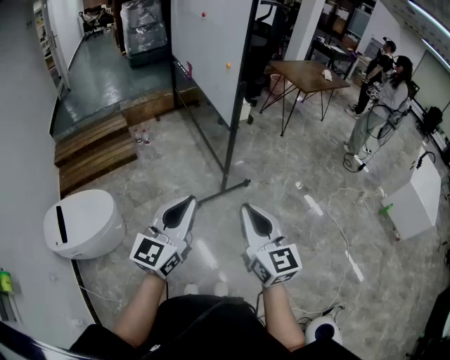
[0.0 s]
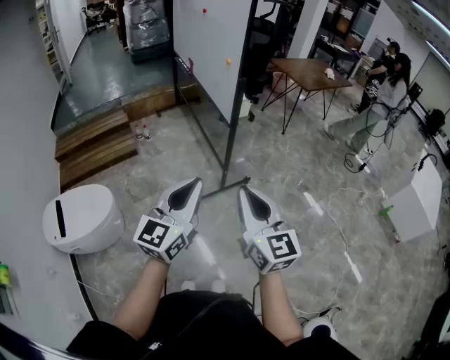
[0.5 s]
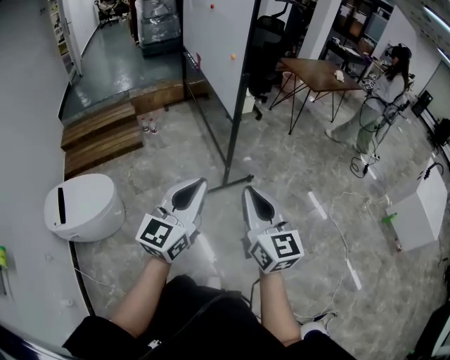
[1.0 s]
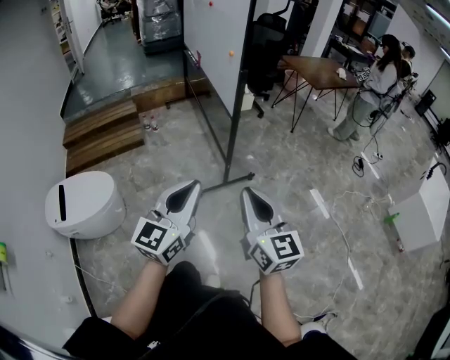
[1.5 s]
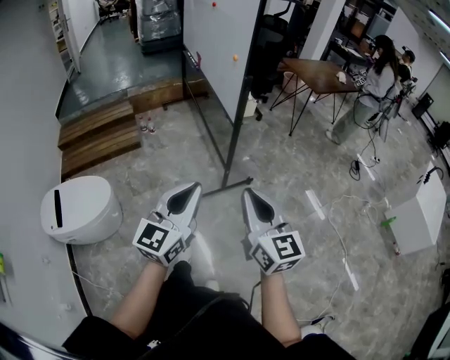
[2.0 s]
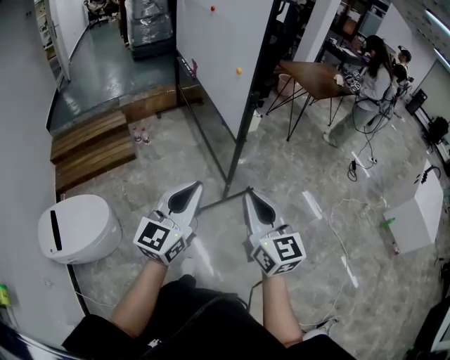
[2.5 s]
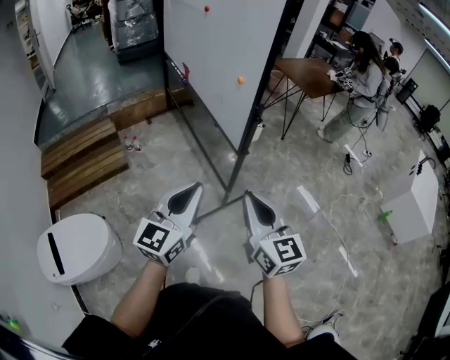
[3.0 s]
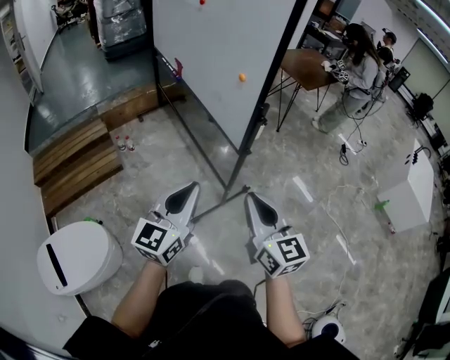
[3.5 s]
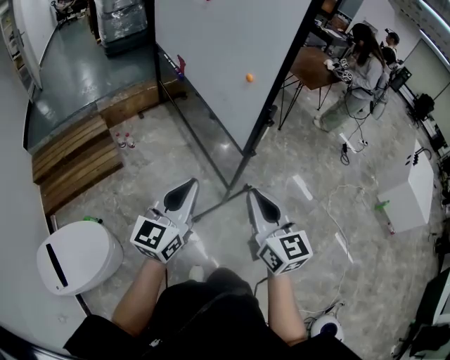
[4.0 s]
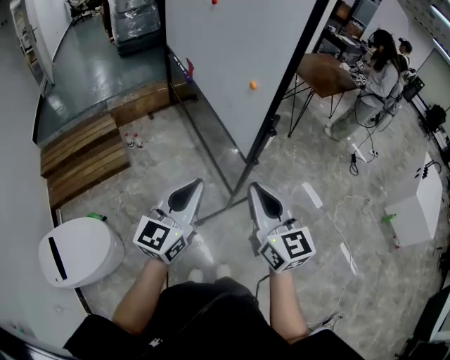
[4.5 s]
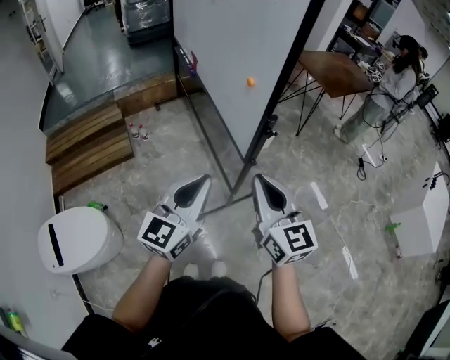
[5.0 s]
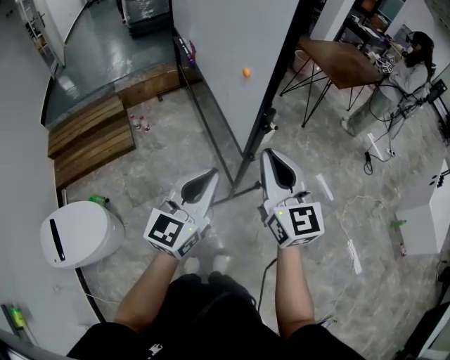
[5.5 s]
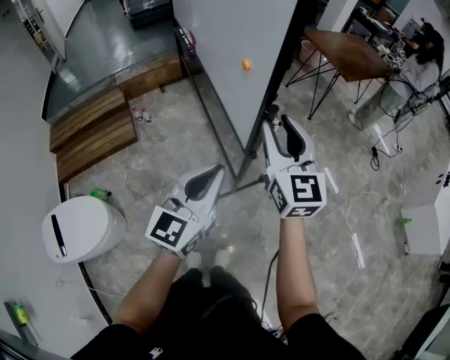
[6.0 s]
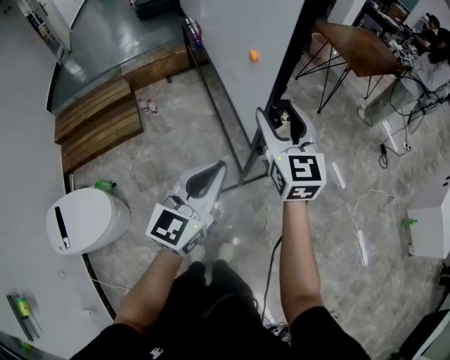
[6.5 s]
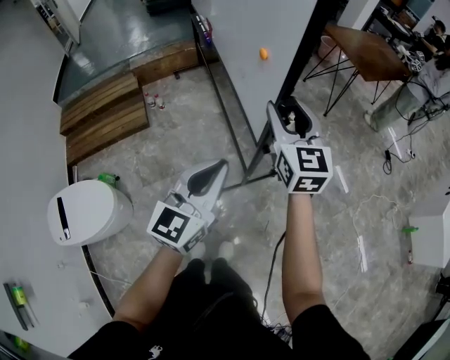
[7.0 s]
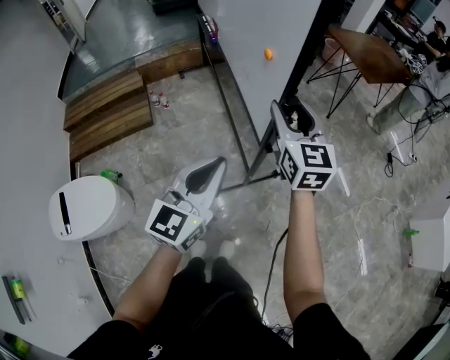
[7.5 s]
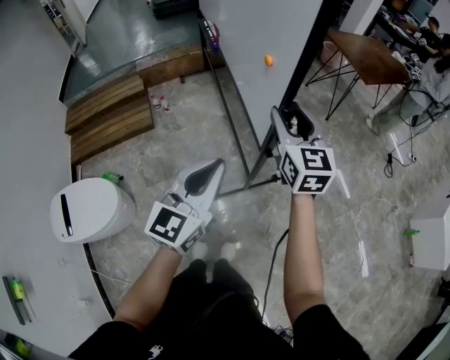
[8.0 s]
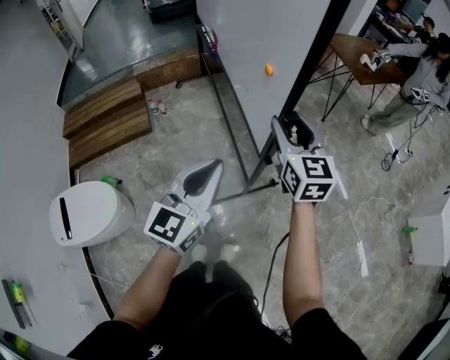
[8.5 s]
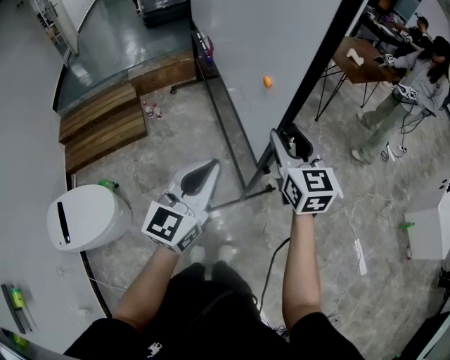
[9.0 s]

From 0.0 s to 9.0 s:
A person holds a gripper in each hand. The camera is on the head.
From 0.0 s to 2.0 s: The grippers both shift forward by roughly 5 cm.
From 2.0 s to 4.5 s: Both grippers travel together forward and to the left, about 30 cm.
From 4.5 s to 7.0 s: The right gripper travels forward by approximately 25 cm, and opens its fingers; the left gripper shifts approximately 10 cm to the right and forward.
From 7.0 s to 9.0 s: The right gripper travels backward by about 10 cm, while the left gripper ends up roughly 5 cm from where it was.

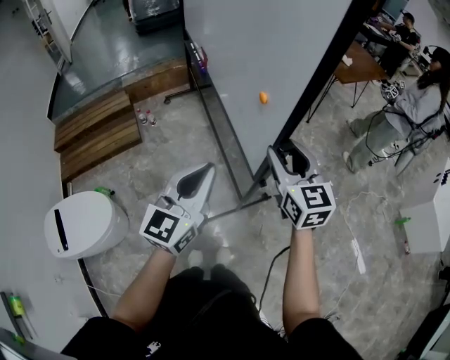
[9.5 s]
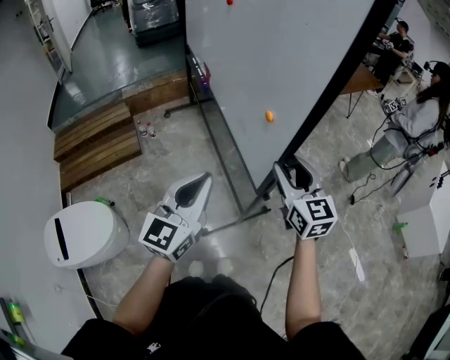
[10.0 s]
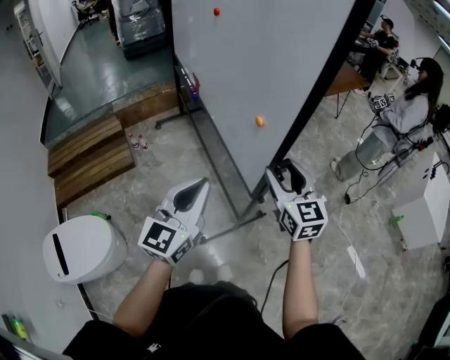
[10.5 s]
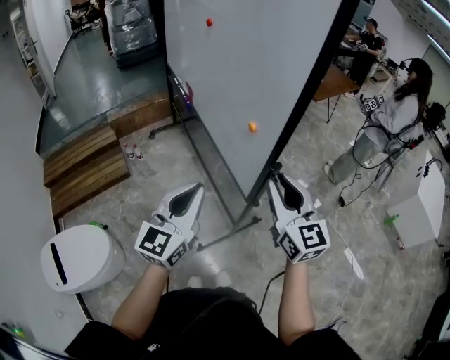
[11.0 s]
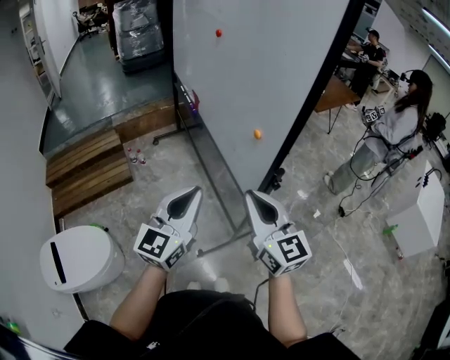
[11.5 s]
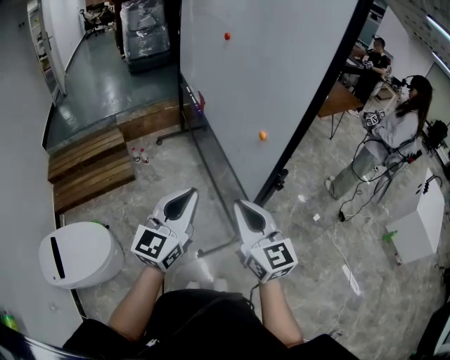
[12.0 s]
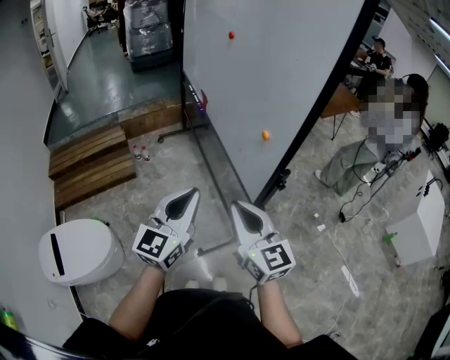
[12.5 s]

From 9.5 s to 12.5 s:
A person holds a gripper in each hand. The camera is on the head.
From 9.5 s to 11.0 s: The right gripper heads backward and upward, covering about 10 cm.
From 11.0 s to 12.5 s: The right gripper is displaced to the left and backward by approximately 15 cm, and closes its fingers; the left gripper shifts by some 5 cm.

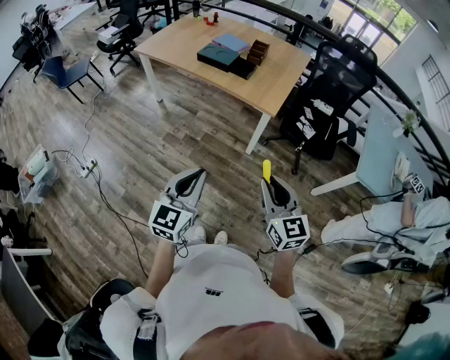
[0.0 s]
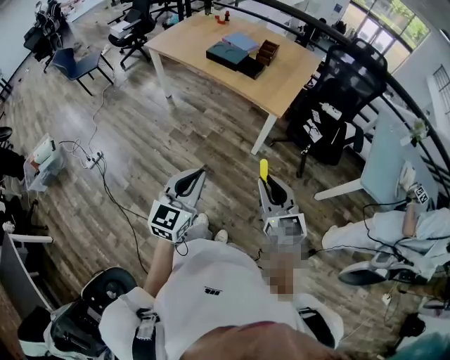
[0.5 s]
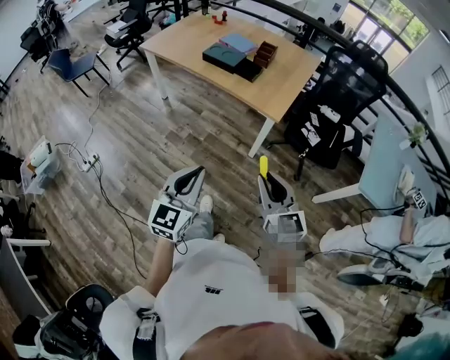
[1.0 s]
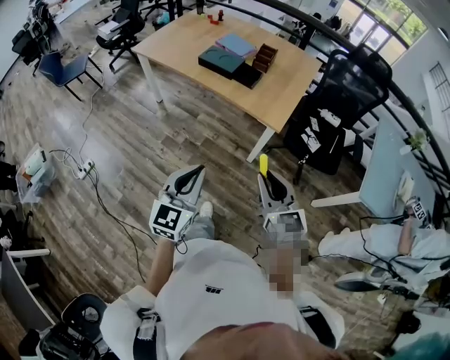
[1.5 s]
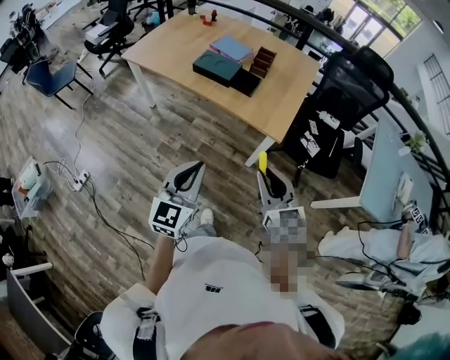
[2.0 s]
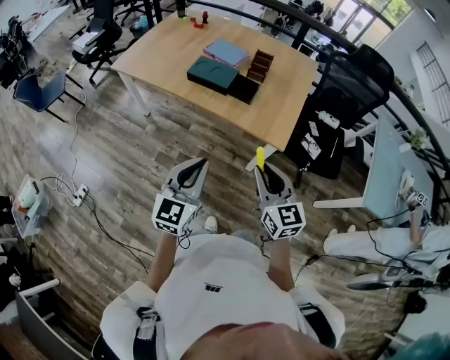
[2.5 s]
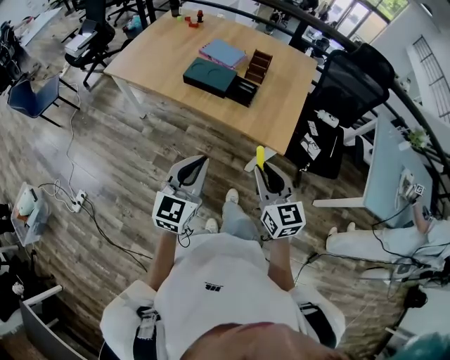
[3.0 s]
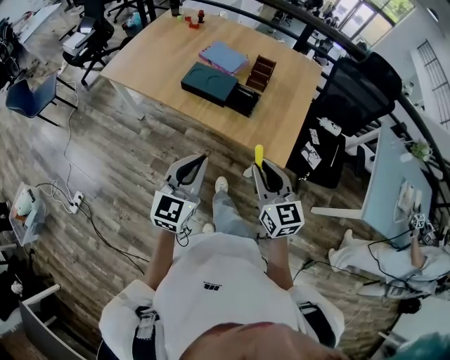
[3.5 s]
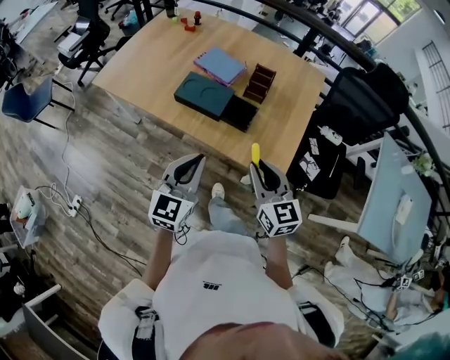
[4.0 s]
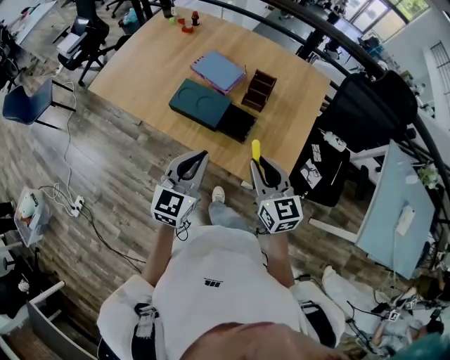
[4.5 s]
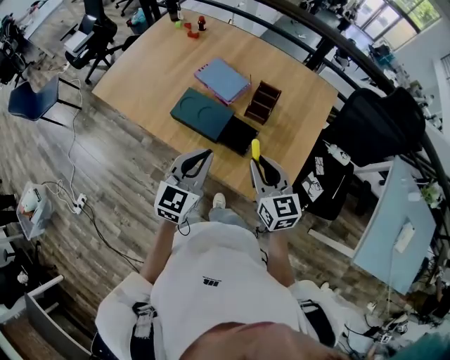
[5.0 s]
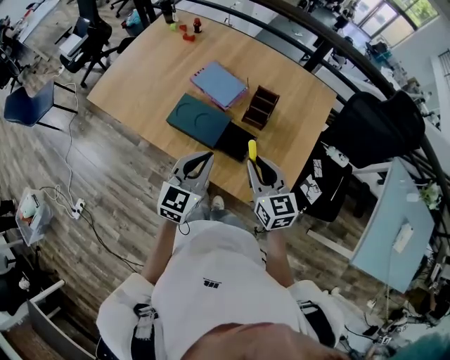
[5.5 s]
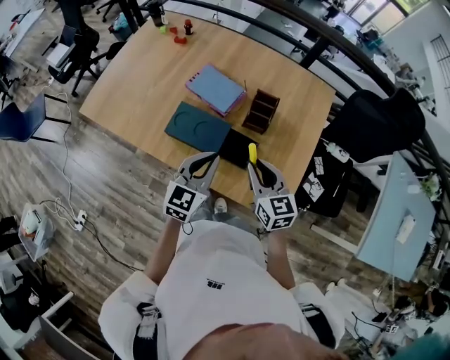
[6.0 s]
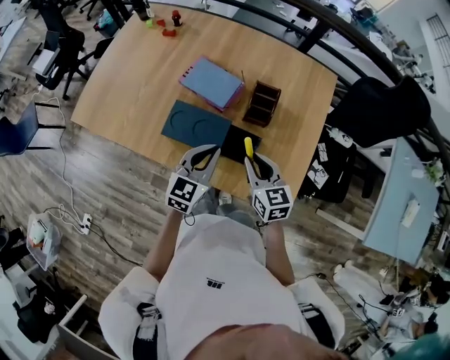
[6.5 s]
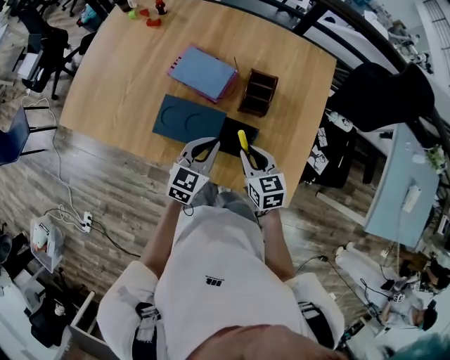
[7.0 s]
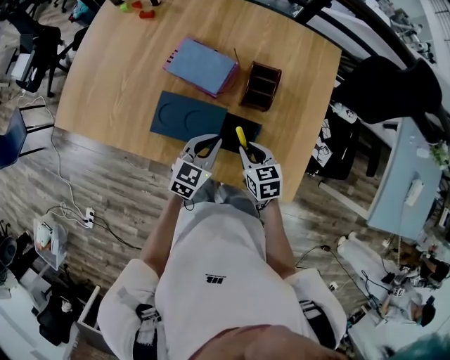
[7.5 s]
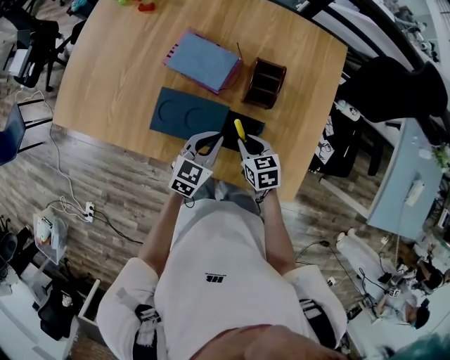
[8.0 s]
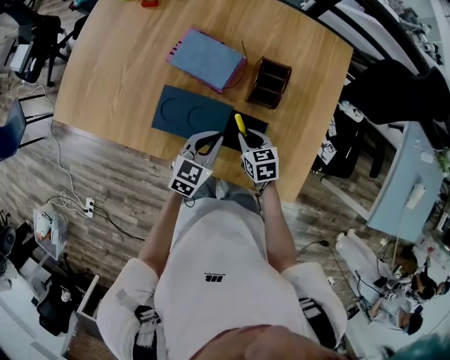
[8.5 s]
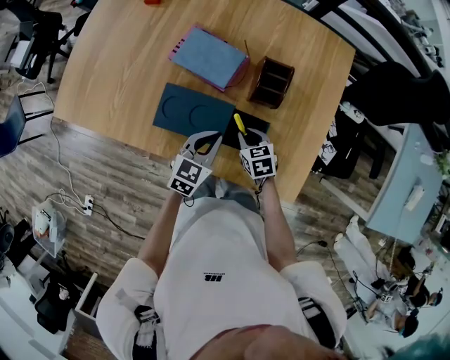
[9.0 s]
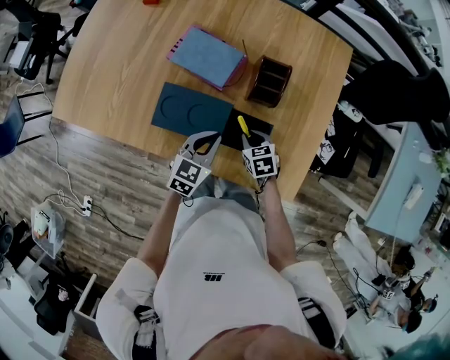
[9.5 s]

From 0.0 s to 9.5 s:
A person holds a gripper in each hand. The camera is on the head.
From 0.0 s to 2.0 s: Both grippers travel together forward, roughly 25 cm.
From 2.0 s to 4.0 s: Both grippers move forward, roughly 30 cm.
From 4.0 s to 5.5 s: The two grippers go some 20 cm forward.
From 5.5 s to 7.5 s: Both grippers move downward and forward, about 20 cm. The right gripper swivels about 30 degrees. The left gripper changes its angle by some 20 degrees.
From 7.5 s to 9.5 s: The right gripper heads downward, covering roughly 10 cm.

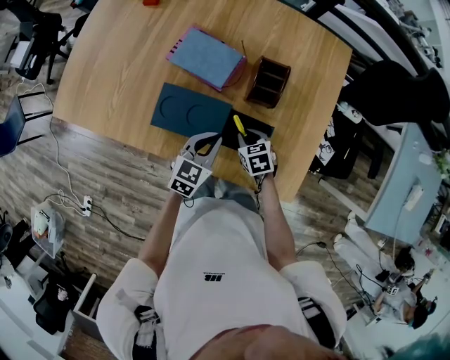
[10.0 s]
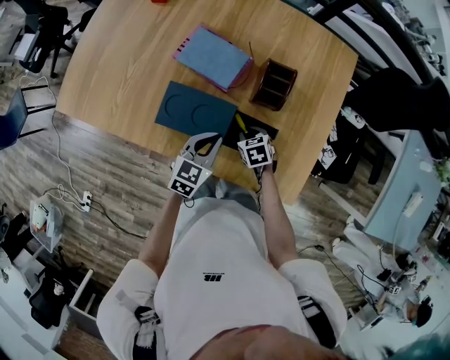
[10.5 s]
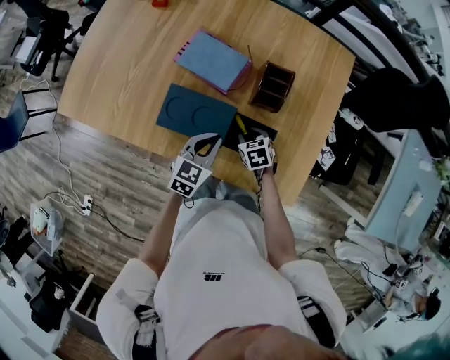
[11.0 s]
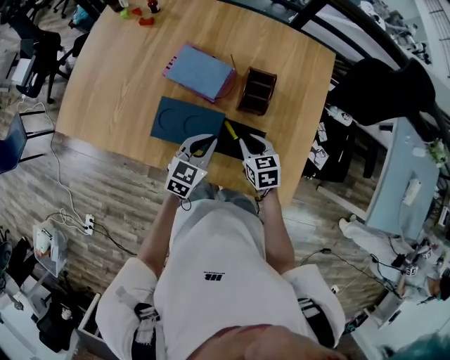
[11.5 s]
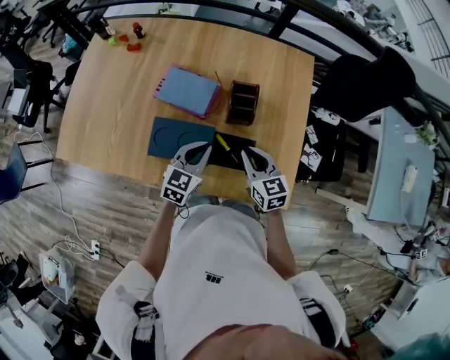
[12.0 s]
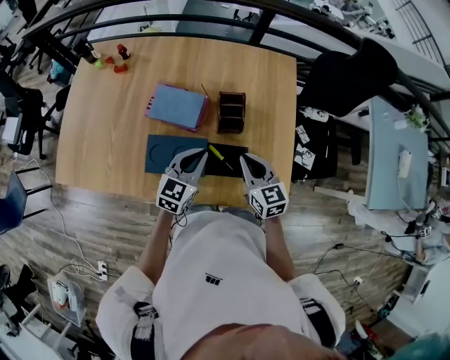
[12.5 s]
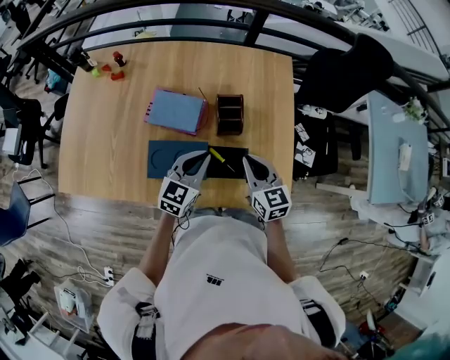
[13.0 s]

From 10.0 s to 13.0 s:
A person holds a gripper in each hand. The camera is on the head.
From 10.0 s to 11.5 s: The right gripper is displaced upward by some 10 cm.
From 11.5 s to 13.0 s: The right gripper travels upward by some 15 cm, and turns by roughly 30 degrees; the left gripper is displaced upward by some 10 cm.

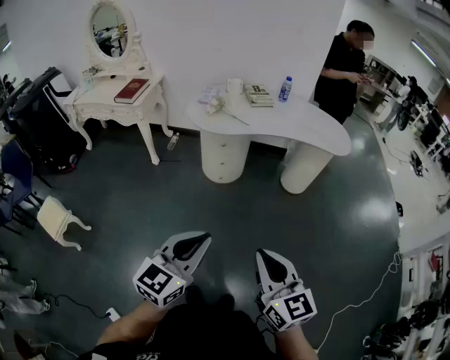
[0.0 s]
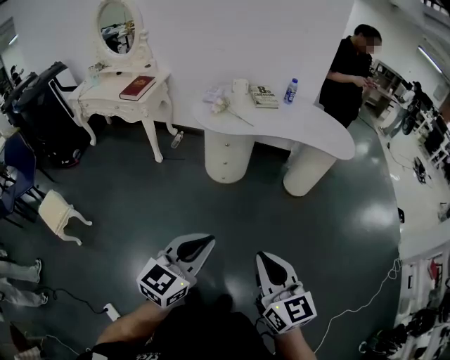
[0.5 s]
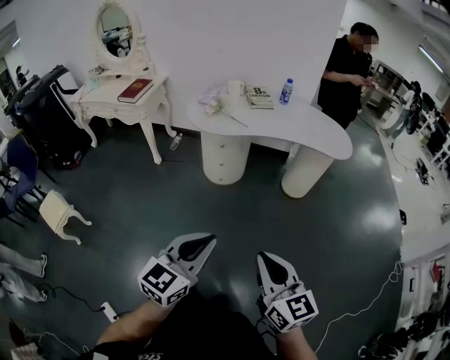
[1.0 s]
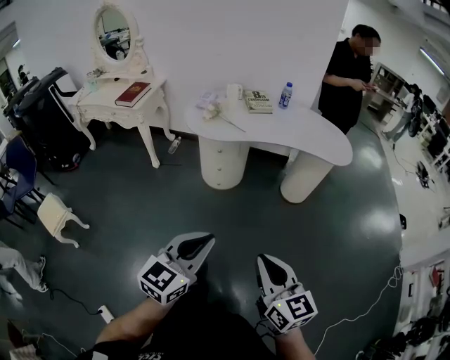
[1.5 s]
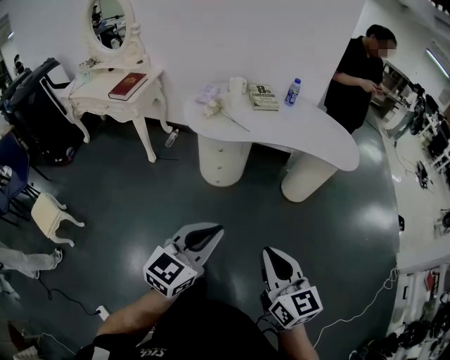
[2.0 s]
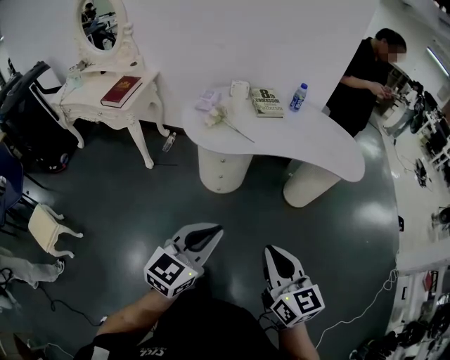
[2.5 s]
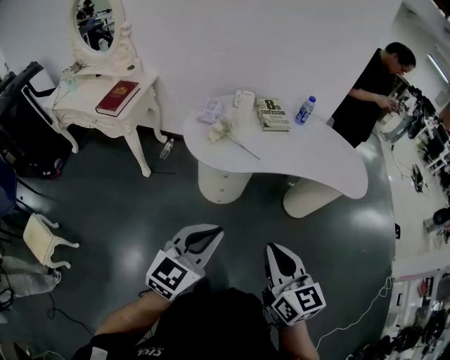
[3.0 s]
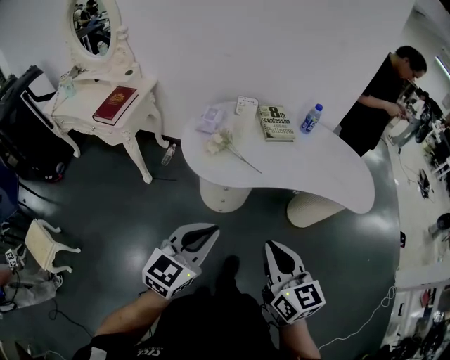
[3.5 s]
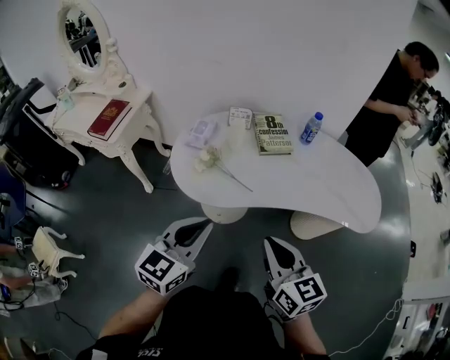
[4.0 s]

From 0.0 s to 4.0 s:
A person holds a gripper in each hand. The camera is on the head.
From 0.0 s to 2.0 s: The two grippers go roughly 15 cm forward.
From 2.0 s to 4.0 s: Both grippers are carried forward, approximately 40 cm.
